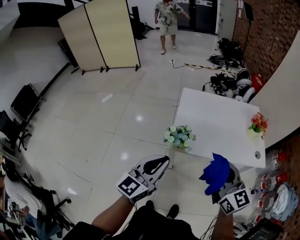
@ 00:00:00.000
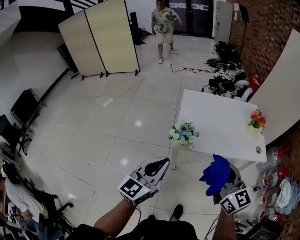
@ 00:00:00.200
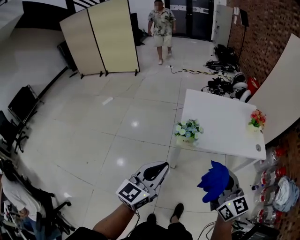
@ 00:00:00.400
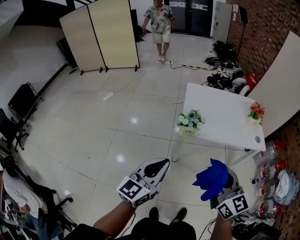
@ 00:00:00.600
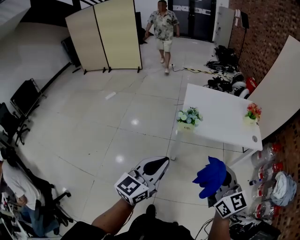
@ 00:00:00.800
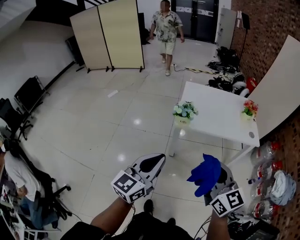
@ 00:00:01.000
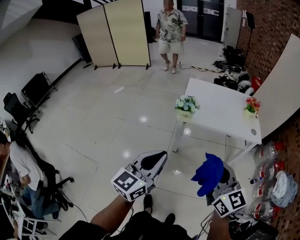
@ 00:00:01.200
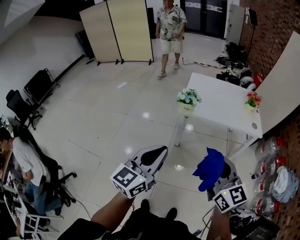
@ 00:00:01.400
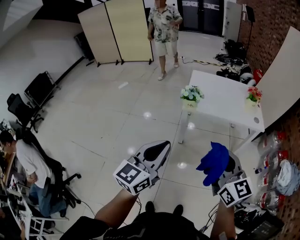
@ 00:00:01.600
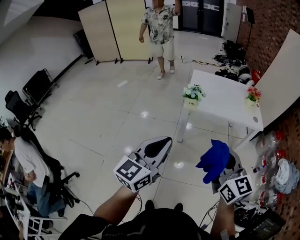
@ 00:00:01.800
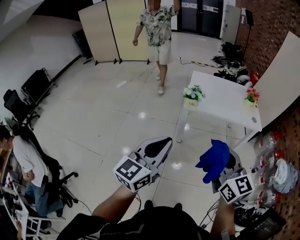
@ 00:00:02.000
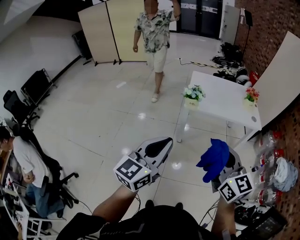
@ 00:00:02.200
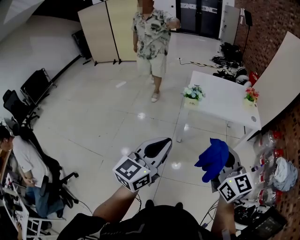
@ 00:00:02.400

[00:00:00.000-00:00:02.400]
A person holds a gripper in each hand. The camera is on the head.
00:00:00.000 to 00:00:01.200: The grippers both shift backward by some 30 cm.
00:00:01.200 to 00:00:02.400: The two grippers go about 10 cm backward and to the left.

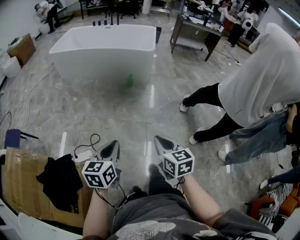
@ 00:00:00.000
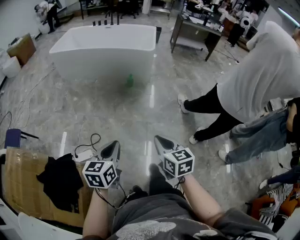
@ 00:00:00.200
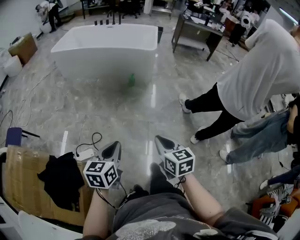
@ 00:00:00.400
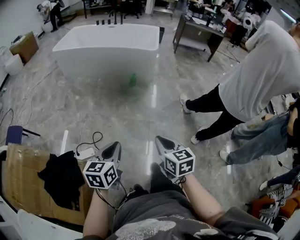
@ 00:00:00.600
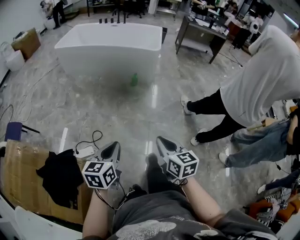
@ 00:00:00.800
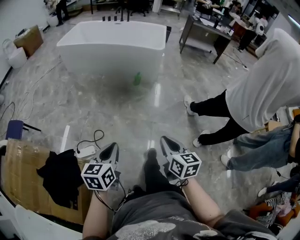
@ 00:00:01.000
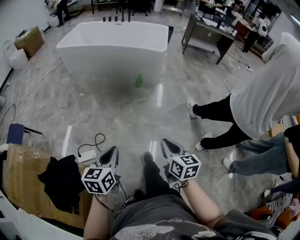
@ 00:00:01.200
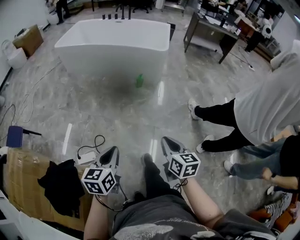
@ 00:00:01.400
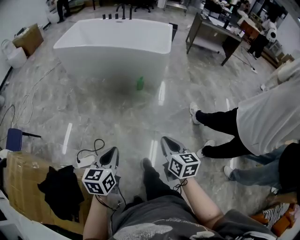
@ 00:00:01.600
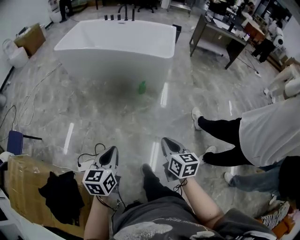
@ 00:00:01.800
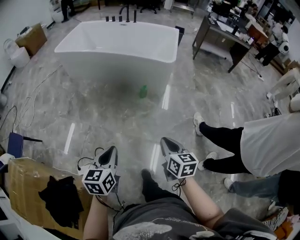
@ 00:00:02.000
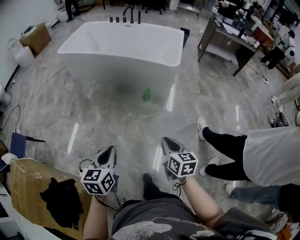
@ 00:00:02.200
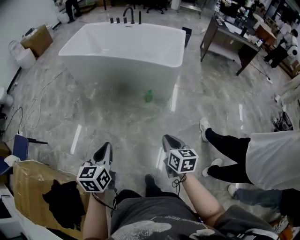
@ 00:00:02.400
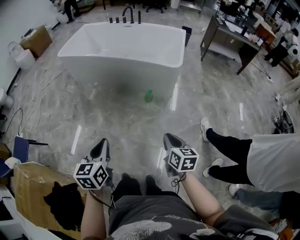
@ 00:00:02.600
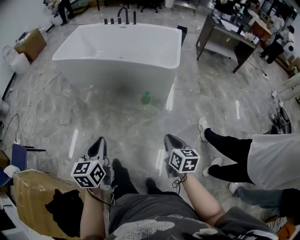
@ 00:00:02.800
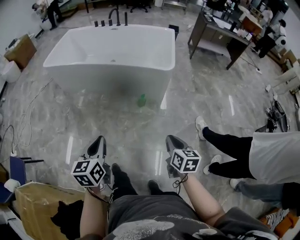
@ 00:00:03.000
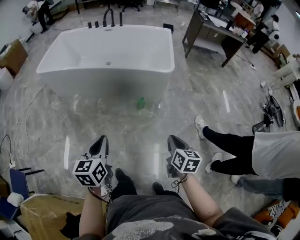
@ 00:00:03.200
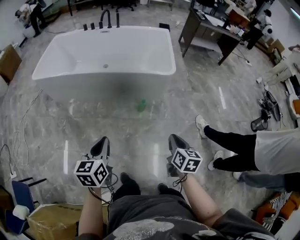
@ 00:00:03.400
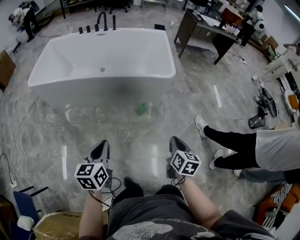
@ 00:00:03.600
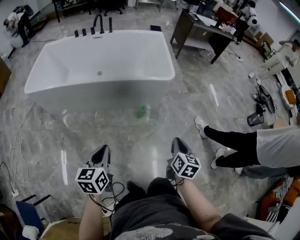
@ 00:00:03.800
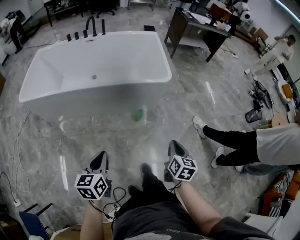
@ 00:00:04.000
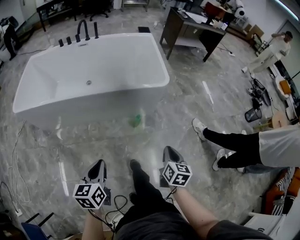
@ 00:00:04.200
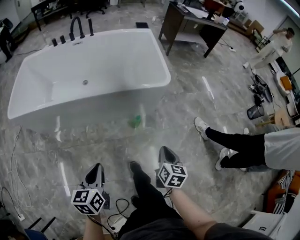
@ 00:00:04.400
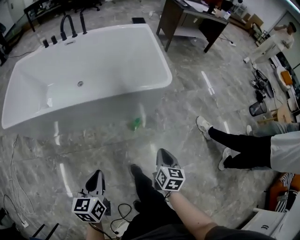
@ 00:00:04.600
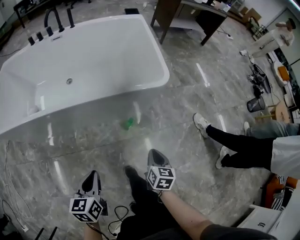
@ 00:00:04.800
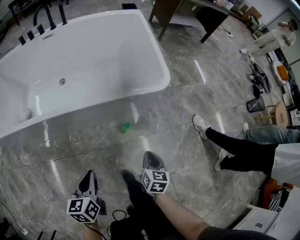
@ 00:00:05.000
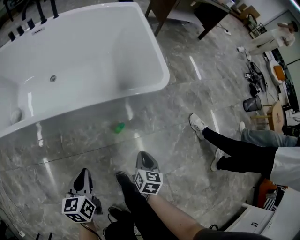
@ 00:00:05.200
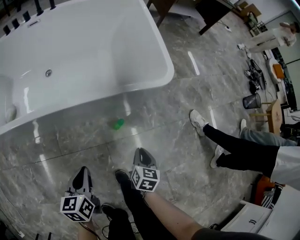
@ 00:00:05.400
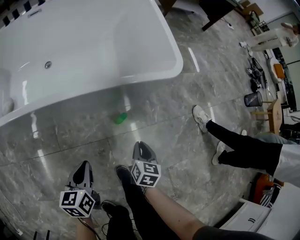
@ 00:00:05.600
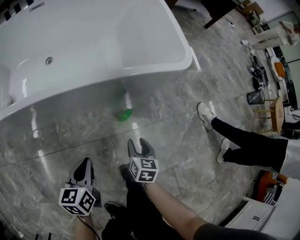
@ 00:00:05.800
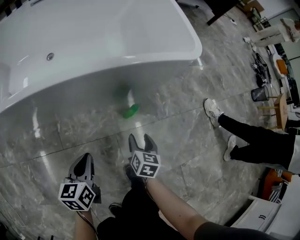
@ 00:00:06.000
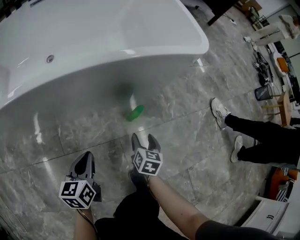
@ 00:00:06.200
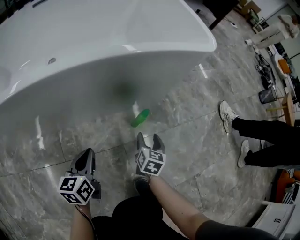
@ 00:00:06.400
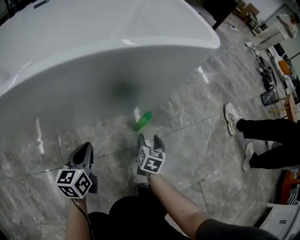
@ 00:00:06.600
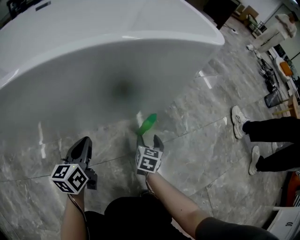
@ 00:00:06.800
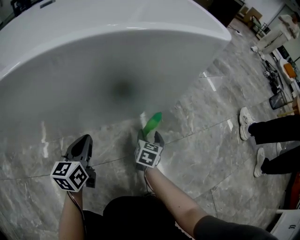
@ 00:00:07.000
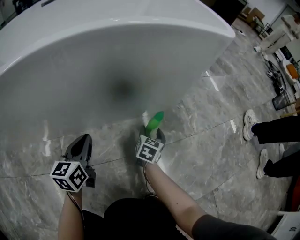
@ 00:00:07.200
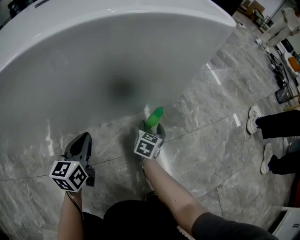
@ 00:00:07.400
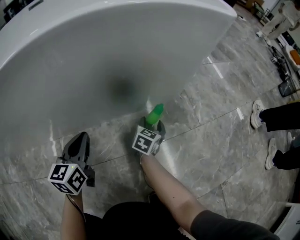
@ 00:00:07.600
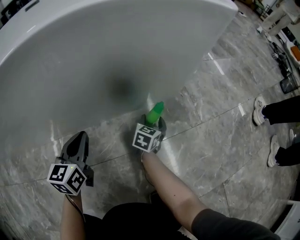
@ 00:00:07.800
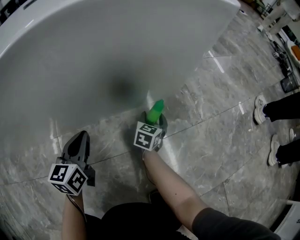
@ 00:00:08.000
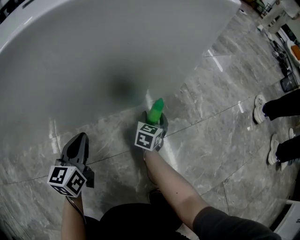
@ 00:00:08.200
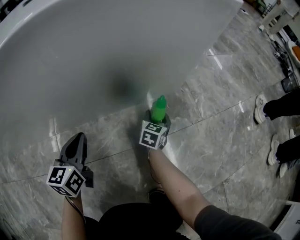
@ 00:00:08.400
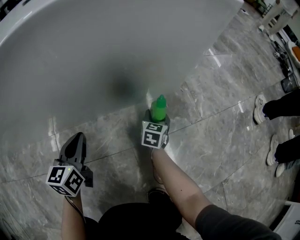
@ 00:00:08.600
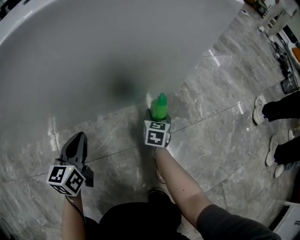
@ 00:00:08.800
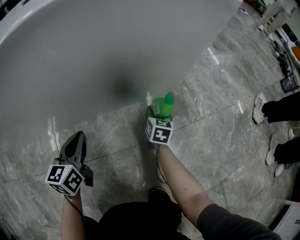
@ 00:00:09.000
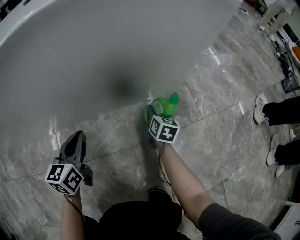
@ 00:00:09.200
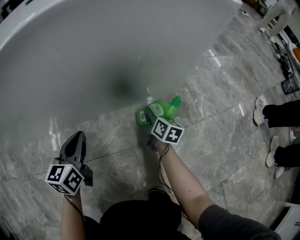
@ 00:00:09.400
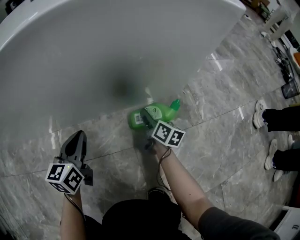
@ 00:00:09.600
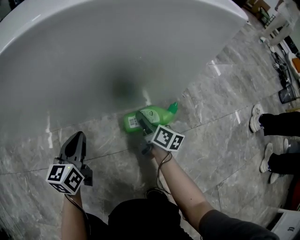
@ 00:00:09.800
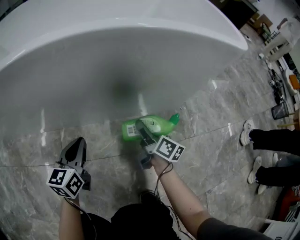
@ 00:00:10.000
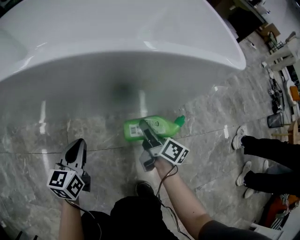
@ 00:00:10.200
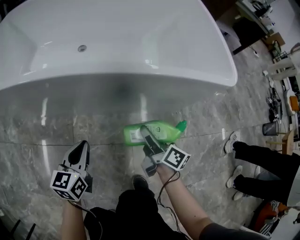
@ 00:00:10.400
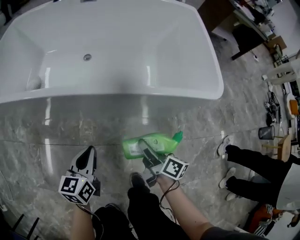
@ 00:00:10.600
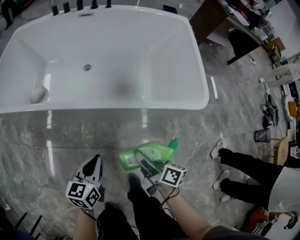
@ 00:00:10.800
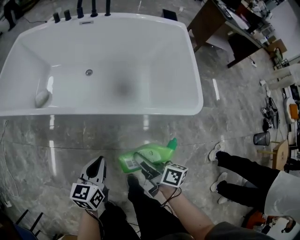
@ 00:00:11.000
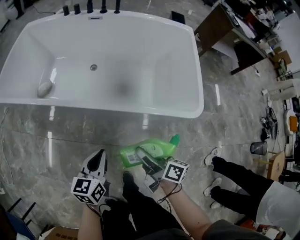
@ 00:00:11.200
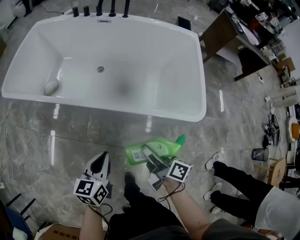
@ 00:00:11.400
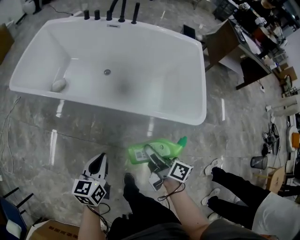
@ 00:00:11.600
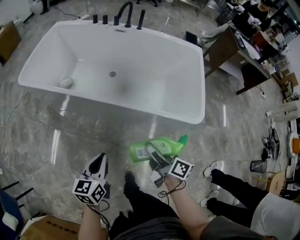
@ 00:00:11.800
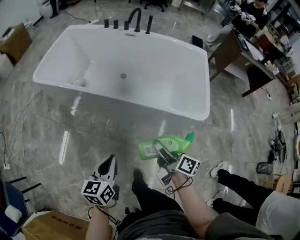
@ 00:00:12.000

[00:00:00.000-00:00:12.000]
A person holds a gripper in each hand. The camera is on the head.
00:00:00.000 to 00:00:01.600: The two grippers go some 15 cm forward.
00:00:01.600 to 00:00:03.000: The two grippers go roughly 30 cm forward.
00:00:03.000 to 00:00:04.400: The left gripper ends up about 30 cm from where it was, and rotates some 20 degrees. The right gripper changes place by some 30 cm, and swivels approximately 30 degrees.
00:00:04.400 to 00:00:06.000: The right gripper is displaced downward by roughly 40 cm, and opens its fingers. Meanwhile the left gripper moves downward and forward, about 40 cm.
00:00:06.000 to 00:00:07.600: Both grippers travel together downward and forward, about 25 cm. The left gripper swivels about 20 degrees.
00:00:07.600 to 00:00:09.000: The grippers move only a little.
00:00:09.000 to 00:00:10.400: The right gripper travels upward and to the left by roughly 35 cm, and rotates some 50 degrees. Meanwhile the left gripper shifts approximately 20 cm upward.
00:00:10.400 to 00:00:12.000: The right gripper shifts roughly 35 cm upward, and turns by approximately 20 degrees. The left gripper moves upward and backward, about 40 cm.

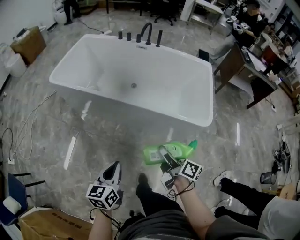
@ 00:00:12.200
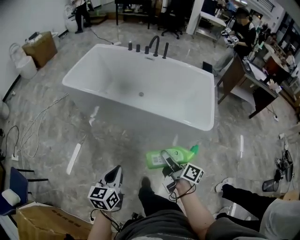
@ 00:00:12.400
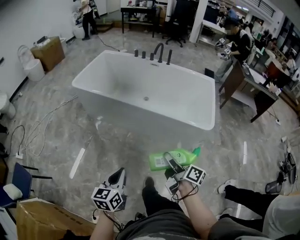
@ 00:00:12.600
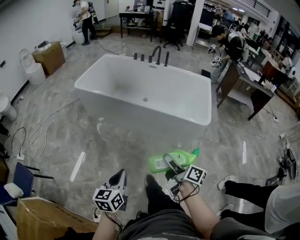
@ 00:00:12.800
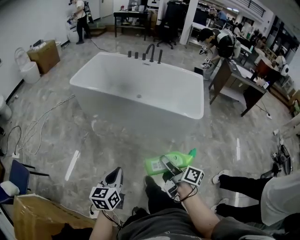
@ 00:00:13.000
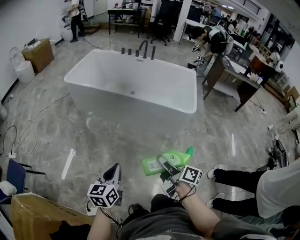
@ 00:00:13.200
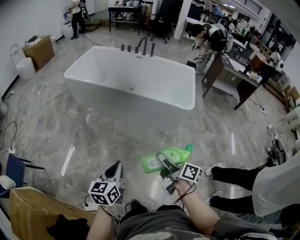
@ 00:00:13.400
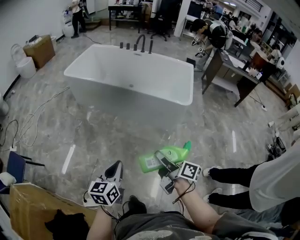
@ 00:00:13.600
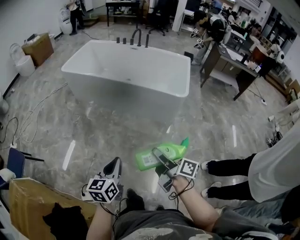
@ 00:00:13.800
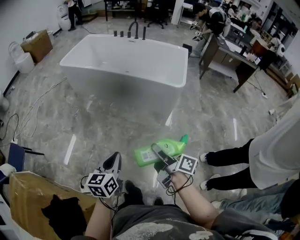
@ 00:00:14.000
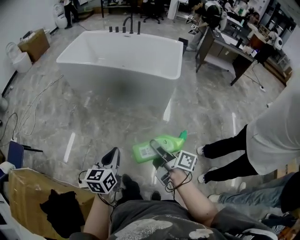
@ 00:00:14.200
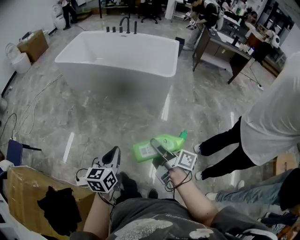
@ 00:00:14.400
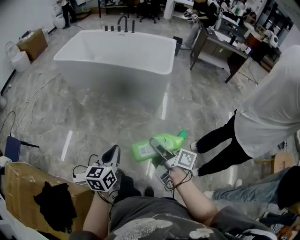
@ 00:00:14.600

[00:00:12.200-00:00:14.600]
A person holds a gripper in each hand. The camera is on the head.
00:00:12.200 to 00:00:13.400: Both grippers travel together backward, some 30 cm.
00:00:13.400 to 00:00:14.600: Both grippers travel together backward and to the right, roughly 25 cm.

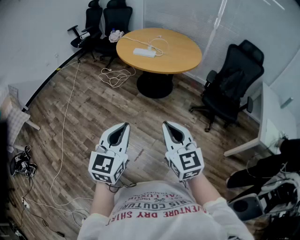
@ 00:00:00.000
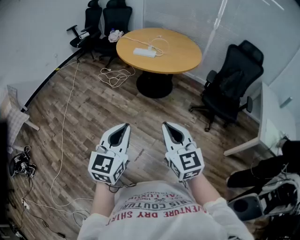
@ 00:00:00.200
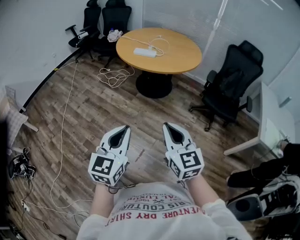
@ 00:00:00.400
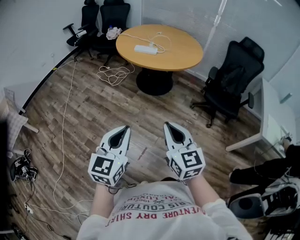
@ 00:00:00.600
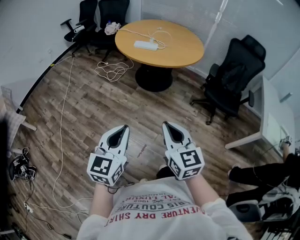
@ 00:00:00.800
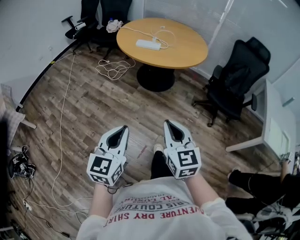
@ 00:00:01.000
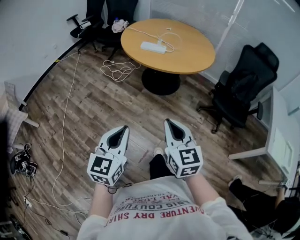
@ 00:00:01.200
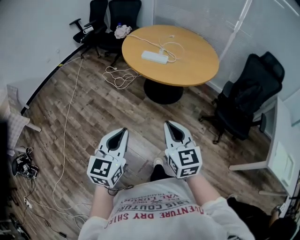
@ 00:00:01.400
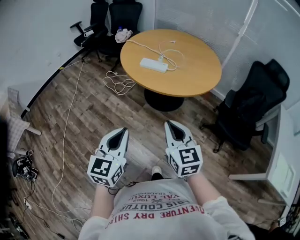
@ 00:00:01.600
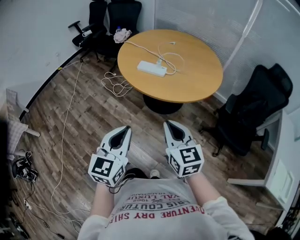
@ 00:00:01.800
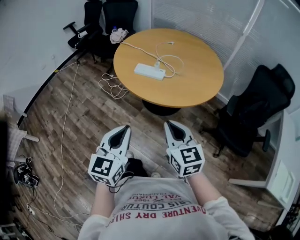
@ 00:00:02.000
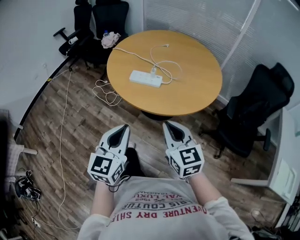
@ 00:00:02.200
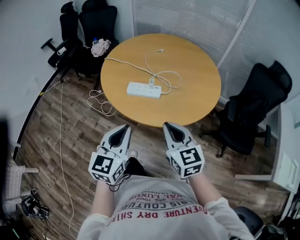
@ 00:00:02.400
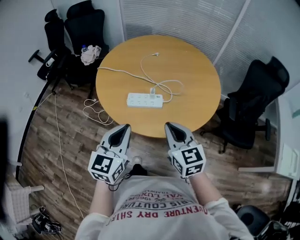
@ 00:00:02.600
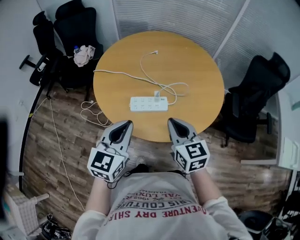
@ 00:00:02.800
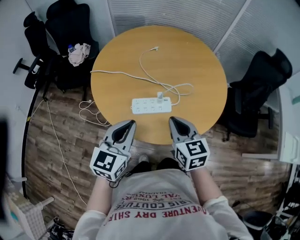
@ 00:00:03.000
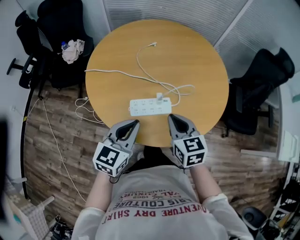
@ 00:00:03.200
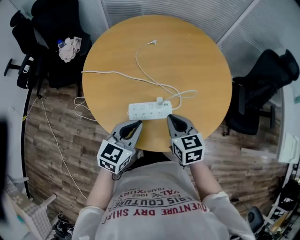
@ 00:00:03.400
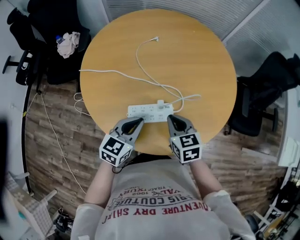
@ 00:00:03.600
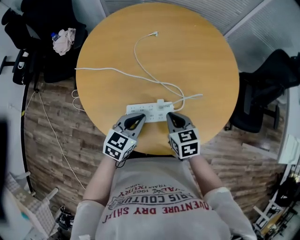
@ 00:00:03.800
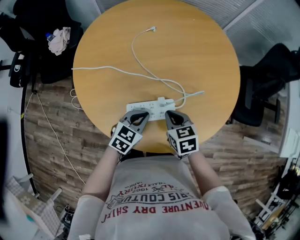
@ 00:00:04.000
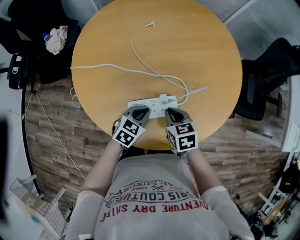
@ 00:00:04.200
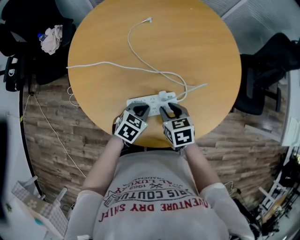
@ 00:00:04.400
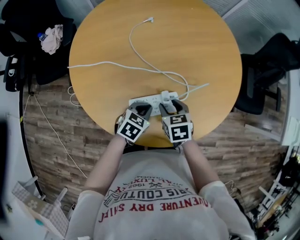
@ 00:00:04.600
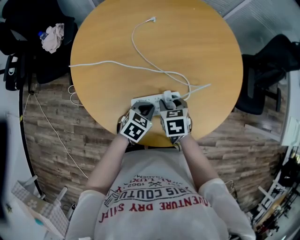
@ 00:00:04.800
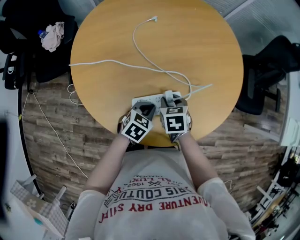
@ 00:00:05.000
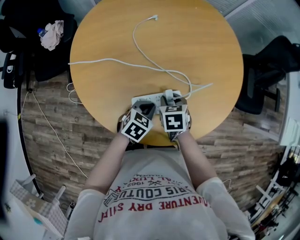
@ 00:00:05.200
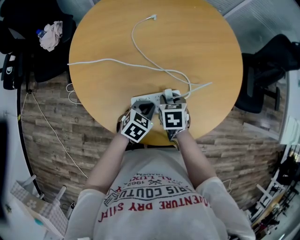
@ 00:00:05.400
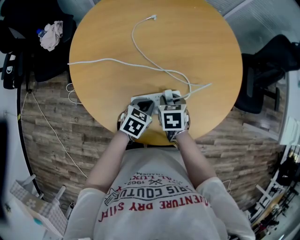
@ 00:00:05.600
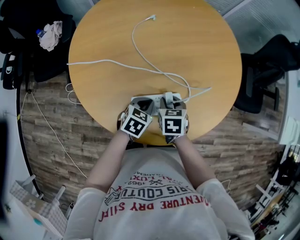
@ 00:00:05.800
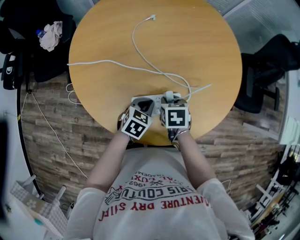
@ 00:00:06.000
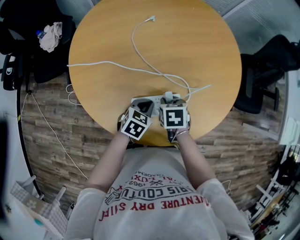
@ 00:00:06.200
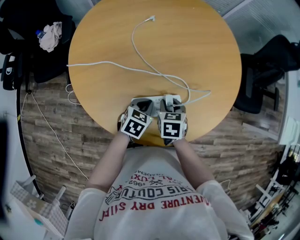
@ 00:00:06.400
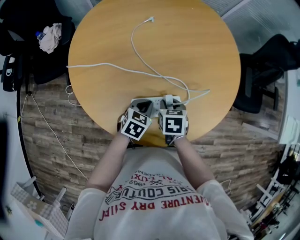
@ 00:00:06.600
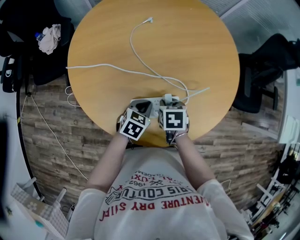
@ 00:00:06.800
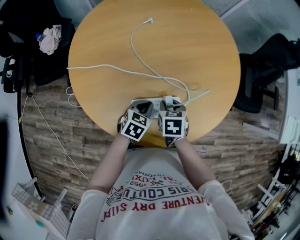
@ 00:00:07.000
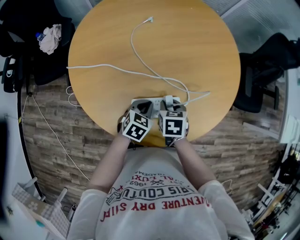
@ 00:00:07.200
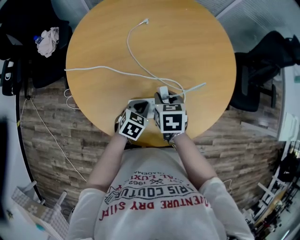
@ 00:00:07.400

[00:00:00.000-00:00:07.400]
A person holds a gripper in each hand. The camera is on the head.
00:00:00.000 to 00:00:01.400: Both grippers travel together forward, roughly 20 cm.
00:00:01.400 to 00:00:03.000: The pair of grippers is taken roughly 60 cm. The left gripper swivels some 30 degrees. Meanwhile the right gripper swivels roughly 30 degrees.
00:00:03.000 to 00:00:04.400: The grippers both shift downward and forward by approximately 25 cm. The right gripper changes its angle by about 30 degrees, and opens up; the left gripper points its fingers approximately 30 degrees further downward.
00:00:04.400 to 00:00:06.000: The grippers move only a little.
00:00:06.000 to 00:00:07.400: The right gripper moves upward, roughly 5 cm.
